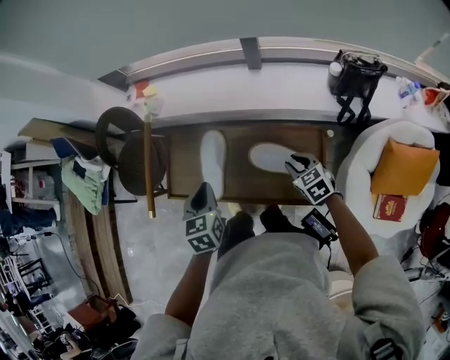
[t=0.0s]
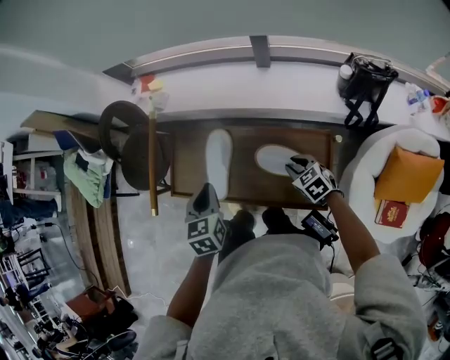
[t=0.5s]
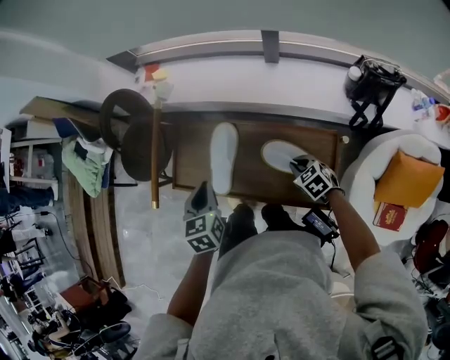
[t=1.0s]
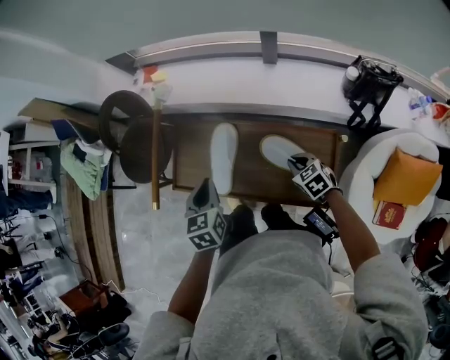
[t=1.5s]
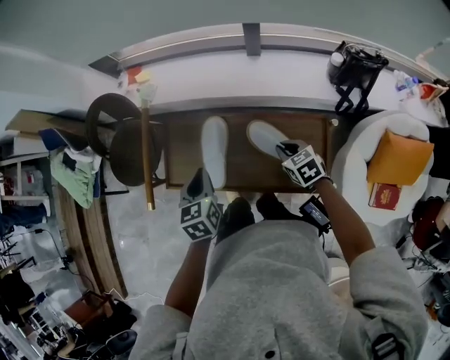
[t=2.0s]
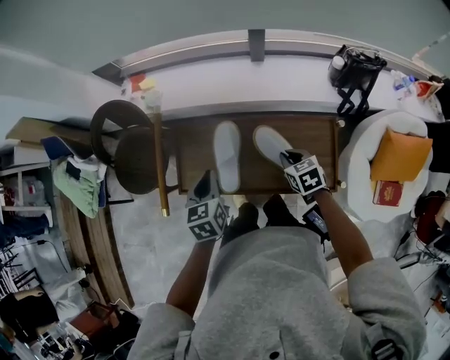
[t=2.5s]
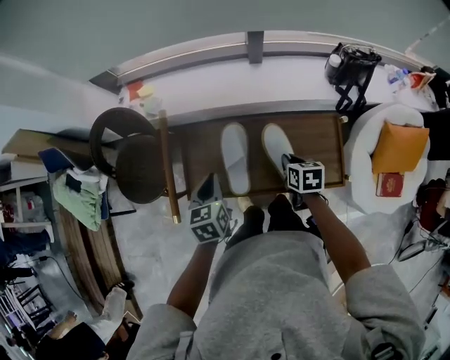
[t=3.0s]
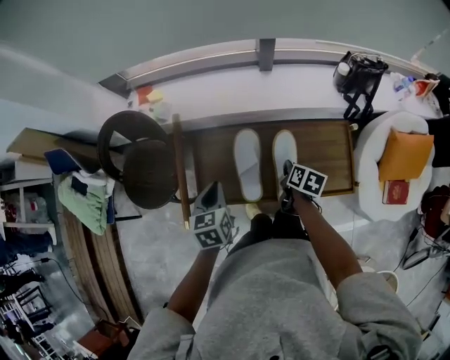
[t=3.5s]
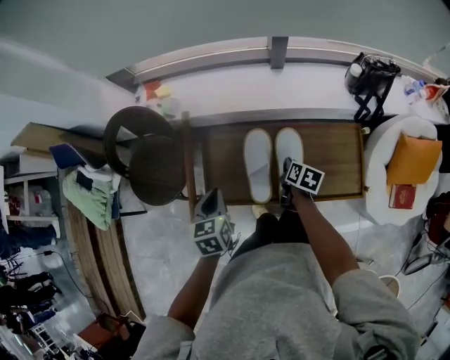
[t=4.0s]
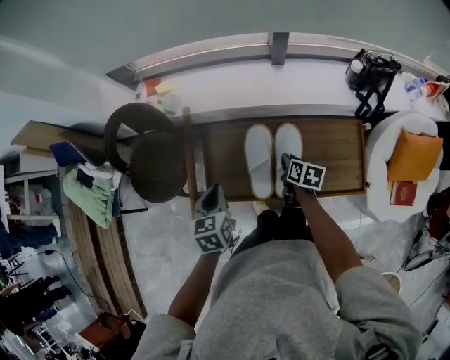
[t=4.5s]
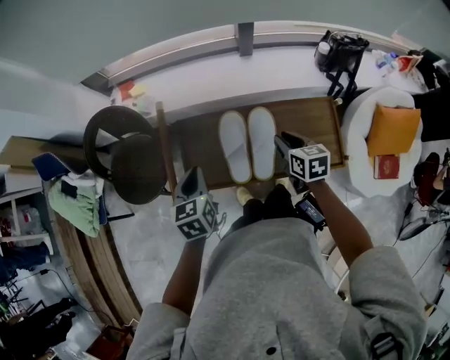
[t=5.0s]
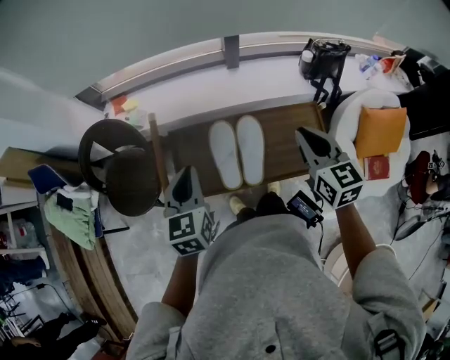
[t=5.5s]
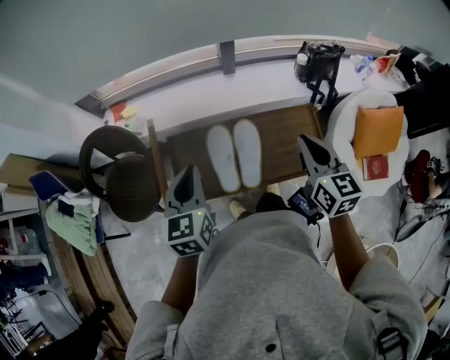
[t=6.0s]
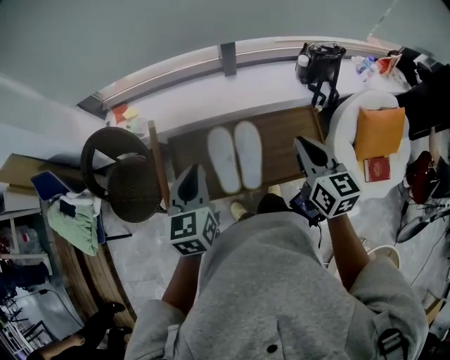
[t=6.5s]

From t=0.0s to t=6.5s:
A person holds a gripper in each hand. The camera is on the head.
From t=0.0s to t=2.0s: The right gripper shifts by some 5 cm.
From t=2.0s to t=4.5s: Both grippers travel together to the left, about 15 cm. The right gripper rolls clockwise, seen from behind, by approximately 50 degrees.
From t=4.5s to t=6.5s: The left gripper is displaced upward and to the right by approximately 15 cm, and turns by approximately 20 degrees. The right gripper travels upward by approximately 30 cm, and points its fingers some 30 degrees further upward.

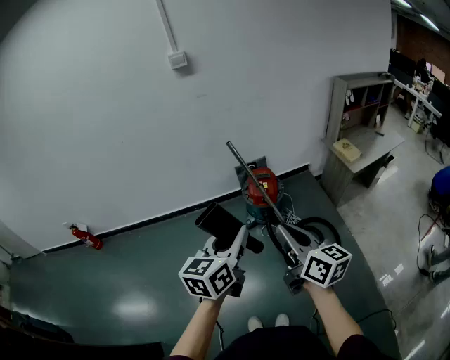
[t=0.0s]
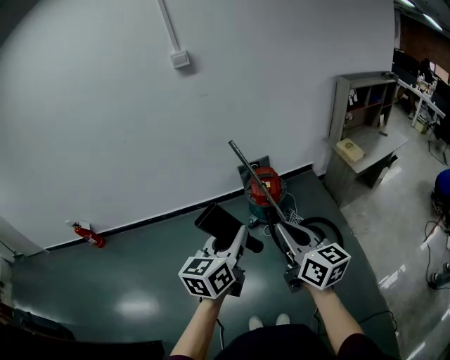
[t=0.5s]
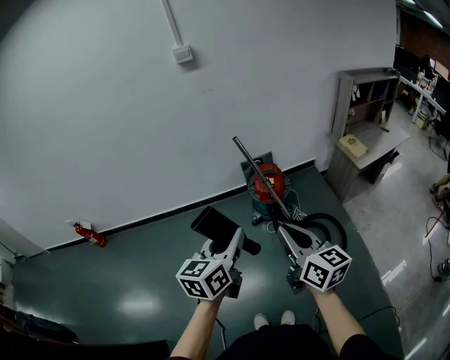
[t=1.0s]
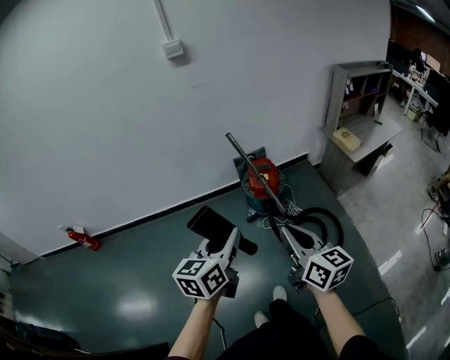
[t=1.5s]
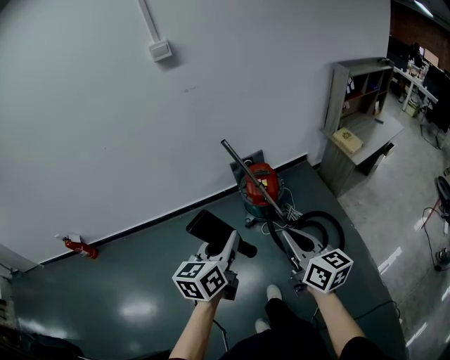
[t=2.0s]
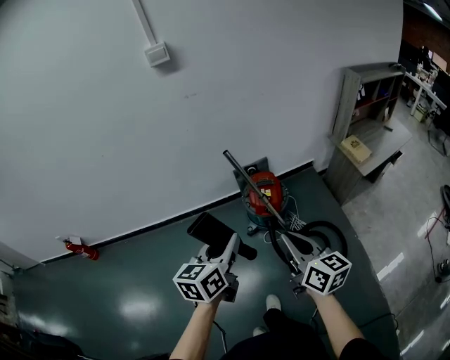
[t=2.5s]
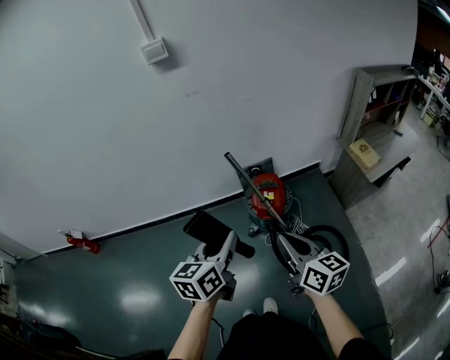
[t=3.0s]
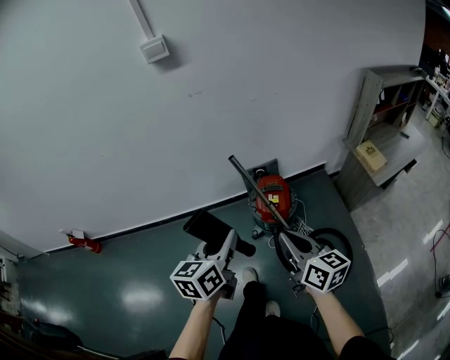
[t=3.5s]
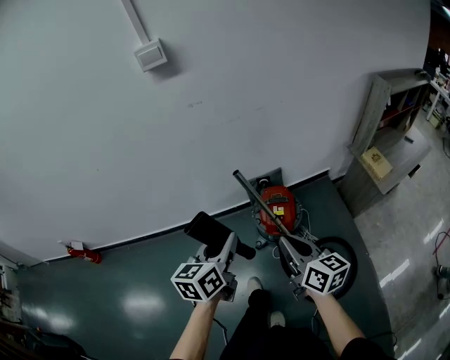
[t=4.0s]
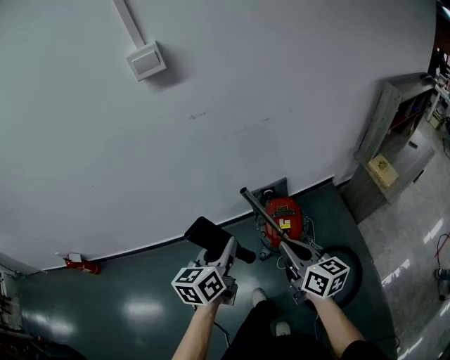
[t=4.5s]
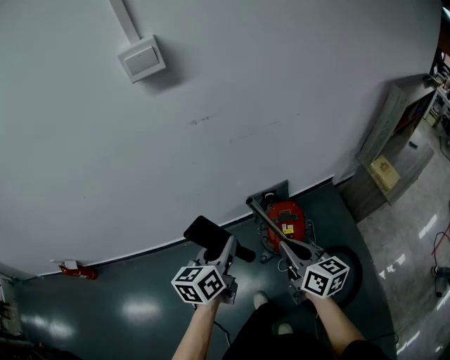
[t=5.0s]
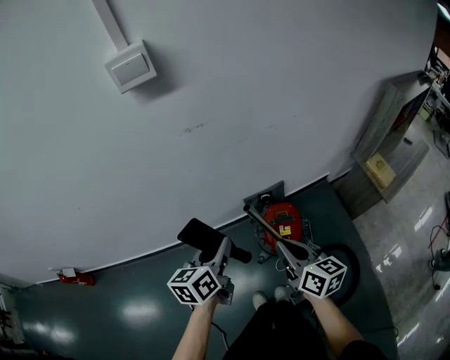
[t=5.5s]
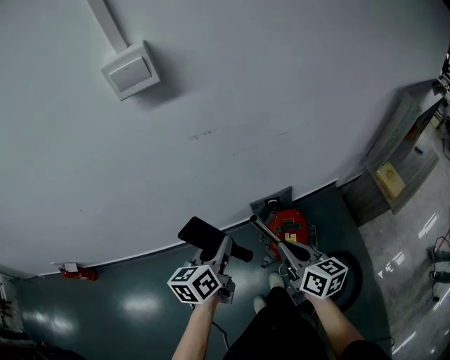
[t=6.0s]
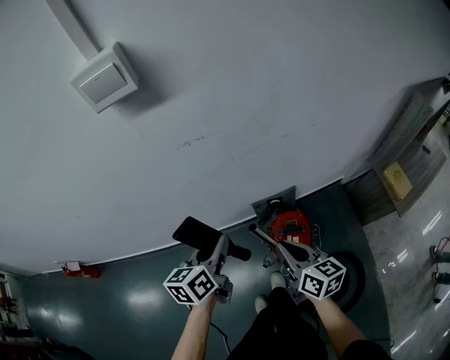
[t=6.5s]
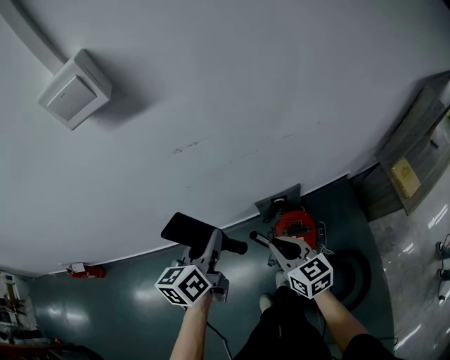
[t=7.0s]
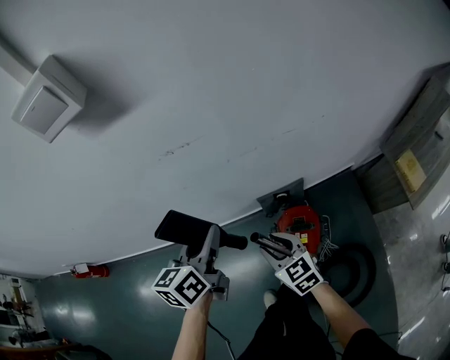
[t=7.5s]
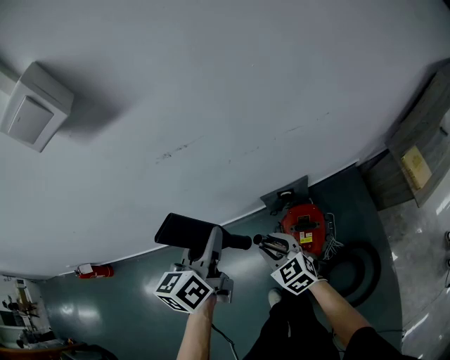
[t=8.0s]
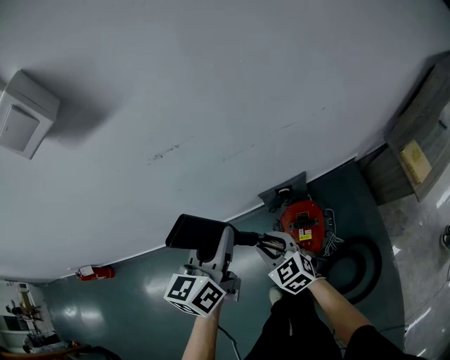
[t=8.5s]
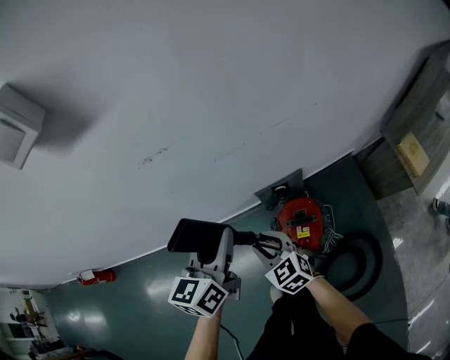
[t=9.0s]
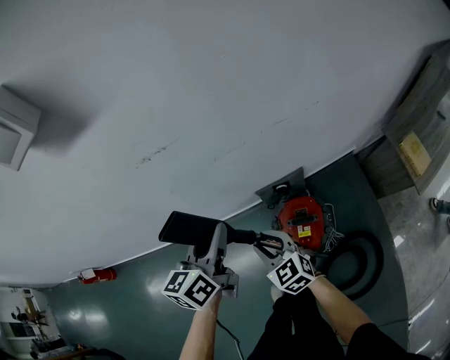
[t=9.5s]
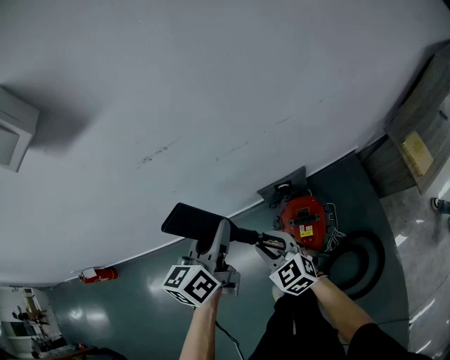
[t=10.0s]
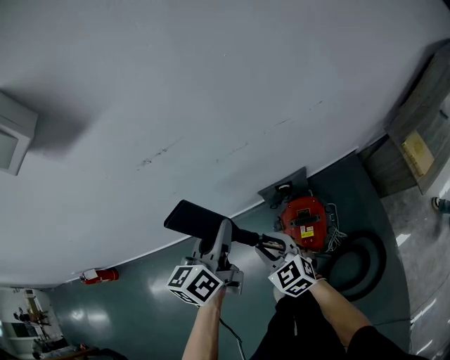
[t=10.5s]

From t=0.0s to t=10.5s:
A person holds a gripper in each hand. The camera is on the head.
From t=0.0s to t=2.0s: Both grippers travel together forward and downward, approximately 10 cm.
From t=2.0s to t=4.0s: The two grippers go approximately 25 cm forward.
From t=4.0s to t=6.5s: Both grippers travel together forward, about 25 cm.
From t=6.5s to t=8.5s: The right gripper heads downward, forward and to the left, covering approximately 15 cm, swivels about 40 degrees, and opens. Meanwhile the left gripper heads forward, covering about 5 cm.
From t=8.5s to t=10.5s: The grippers stay close to where they were, moving slightly.

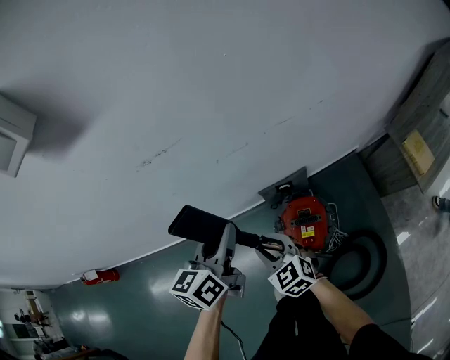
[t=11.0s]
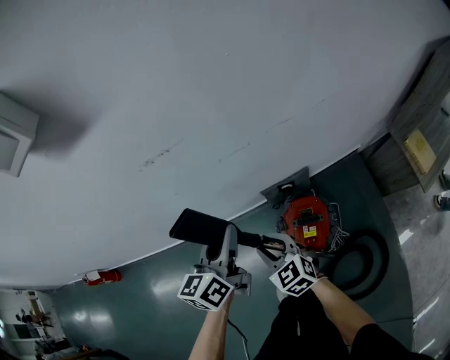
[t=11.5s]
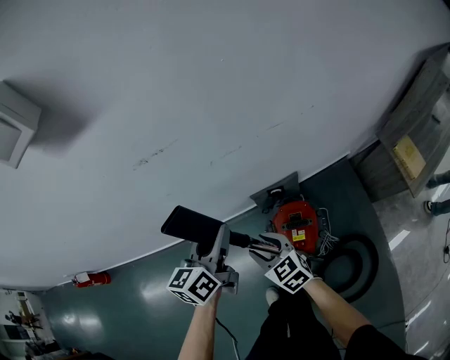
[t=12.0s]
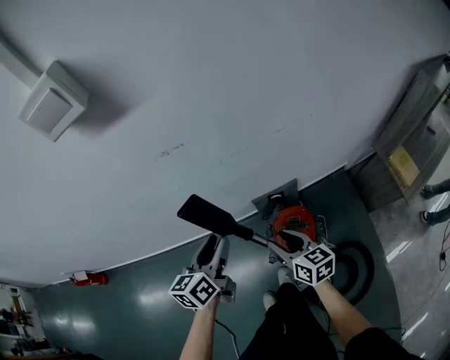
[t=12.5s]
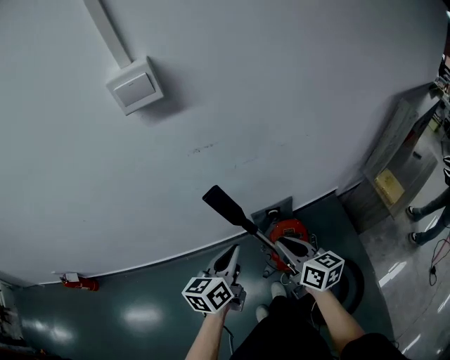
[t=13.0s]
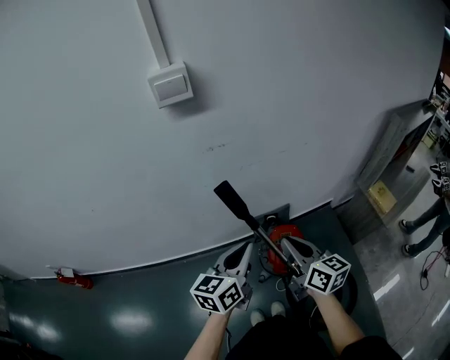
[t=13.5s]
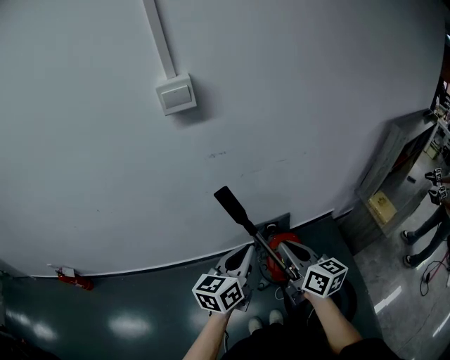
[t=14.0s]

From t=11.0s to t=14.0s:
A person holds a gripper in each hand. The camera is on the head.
From t=11.0s to t=12.5s: The right gripper goes approximately 5 cm to the right, and changes its angle by about 40 degrees. Meanwhile the left gripper shifts by roughly 5 cm, and opens up.
From t=12.5s to t=14.0s: The left gripper travels backward and upward by roughly 20 cm, and closes up. Meanwhile the right gripper heads upward and backward, covering about 25 cm, and closes its fingers.

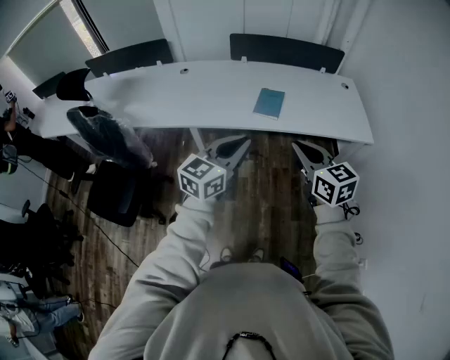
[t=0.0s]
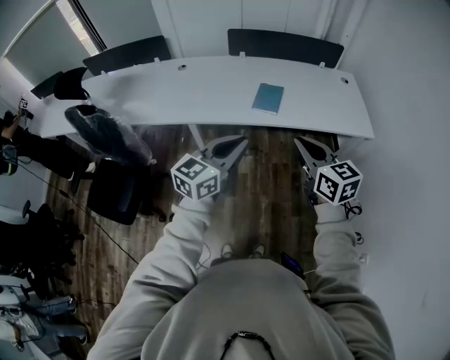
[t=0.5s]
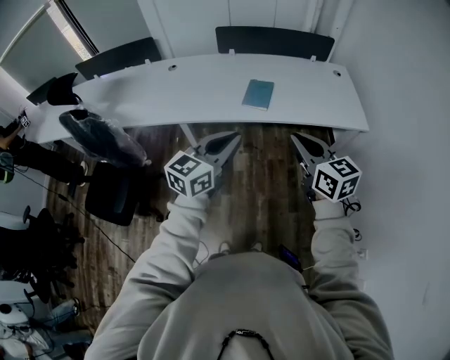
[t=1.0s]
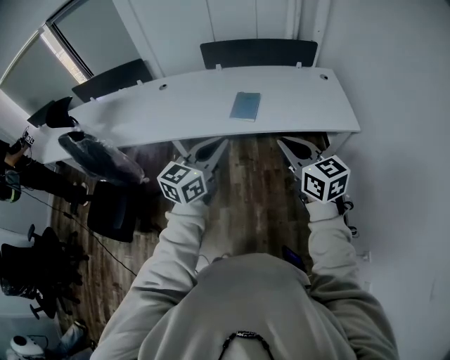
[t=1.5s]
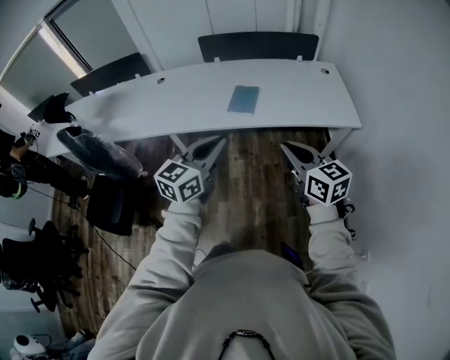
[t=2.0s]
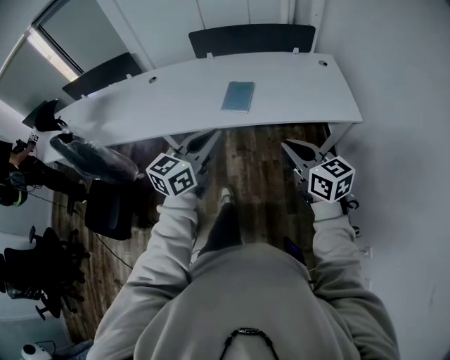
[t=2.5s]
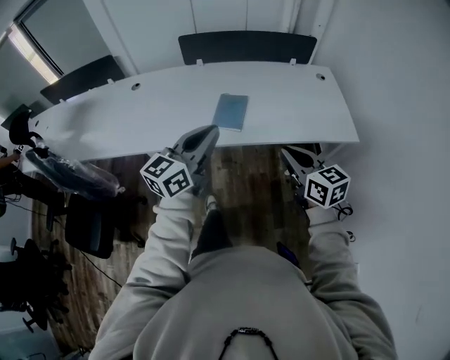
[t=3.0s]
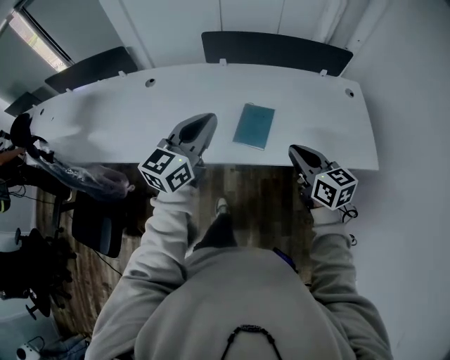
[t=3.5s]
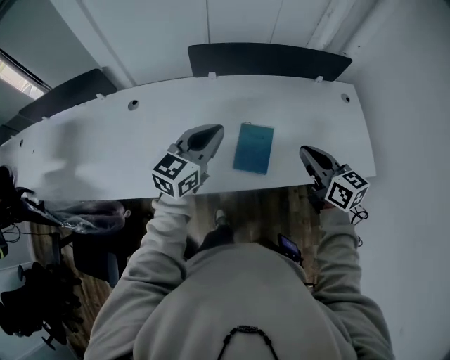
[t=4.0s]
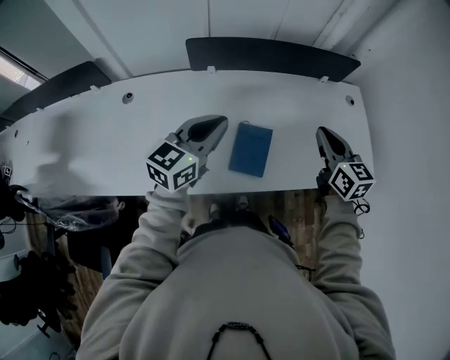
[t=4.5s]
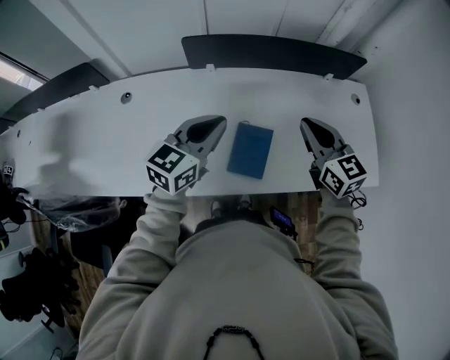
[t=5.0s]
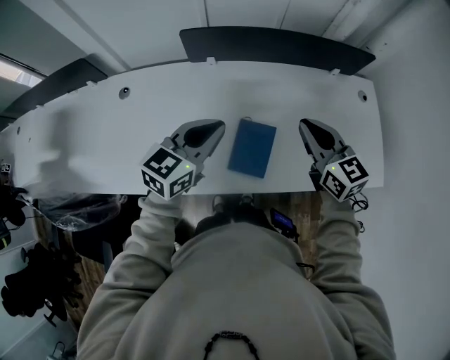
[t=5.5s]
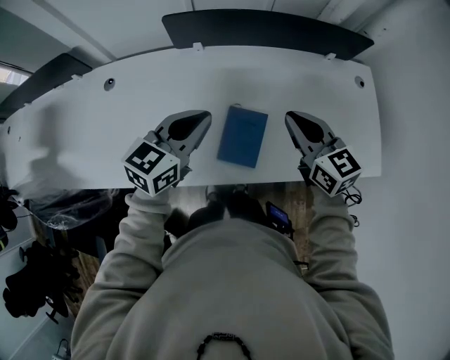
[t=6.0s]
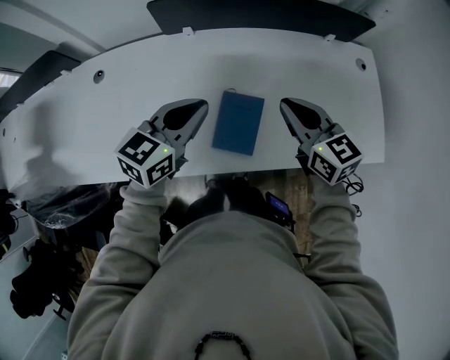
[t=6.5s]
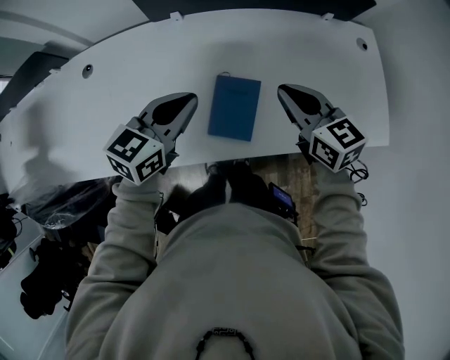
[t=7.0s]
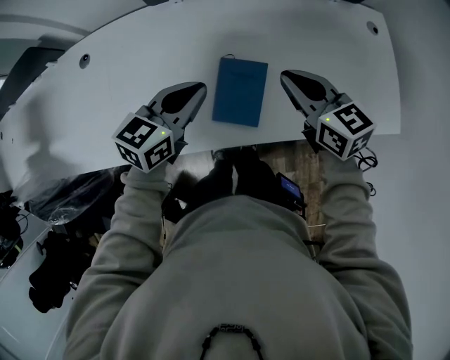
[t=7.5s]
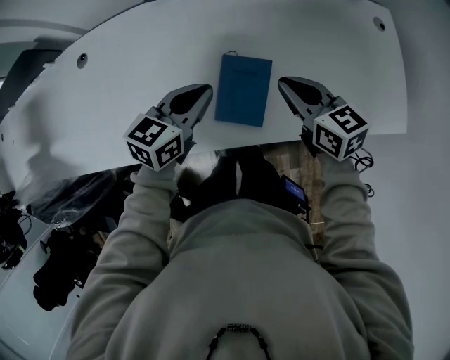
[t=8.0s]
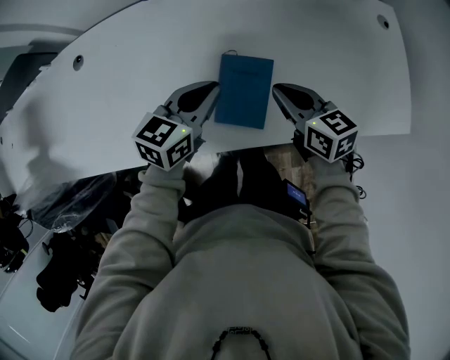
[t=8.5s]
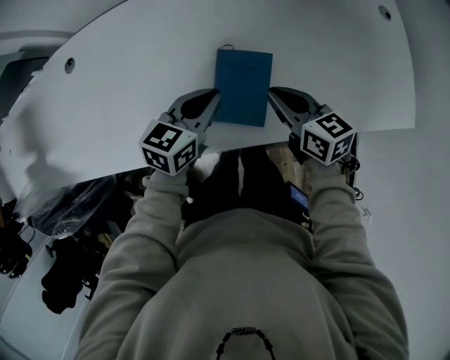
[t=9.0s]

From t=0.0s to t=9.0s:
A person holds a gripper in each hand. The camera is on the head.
From t=0.0s to t=2.0s: The grippers both shift to the right by approximately 10 cm.
From t=2.0s to t=4.5s: Both grippers are carried forward, roughly 50 cm.
From t=4.5s to t=7.0s: Both grippers move downward, about 10 cm.
From t=7.0s to t=9.0s: The two grippers go about 15 cm downward.
